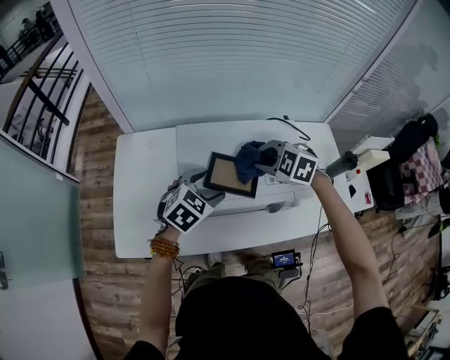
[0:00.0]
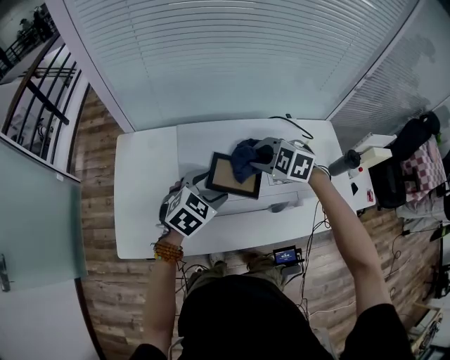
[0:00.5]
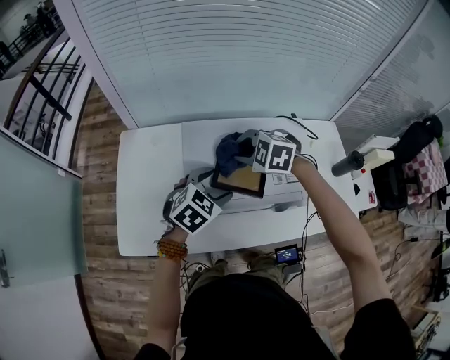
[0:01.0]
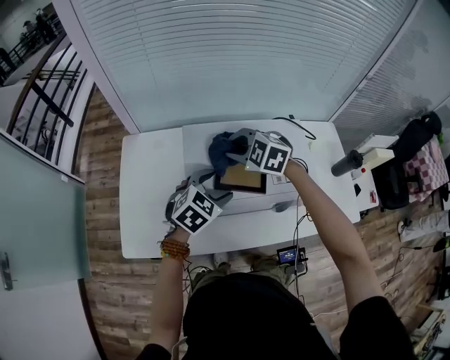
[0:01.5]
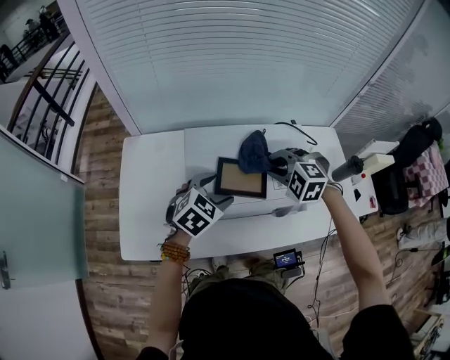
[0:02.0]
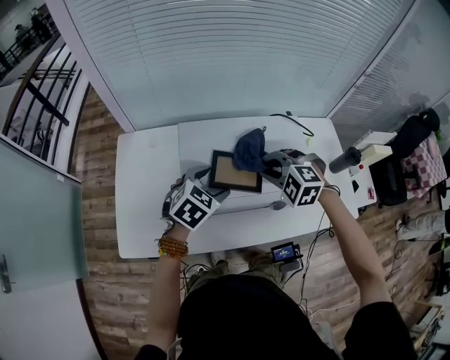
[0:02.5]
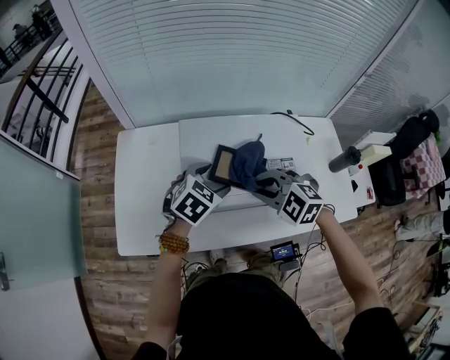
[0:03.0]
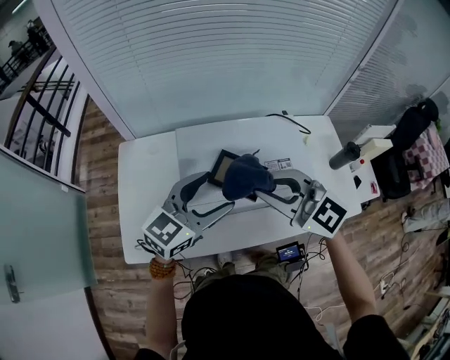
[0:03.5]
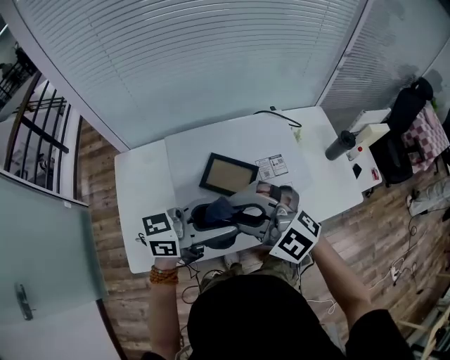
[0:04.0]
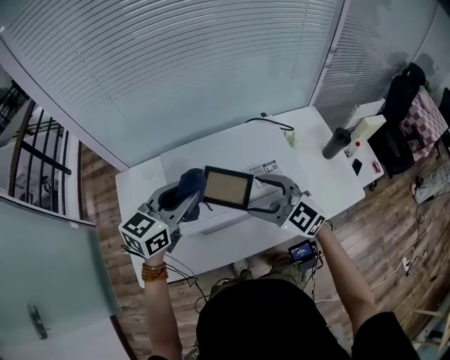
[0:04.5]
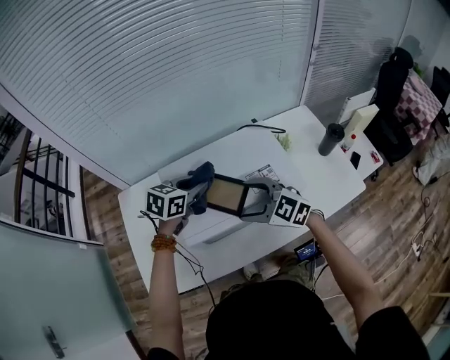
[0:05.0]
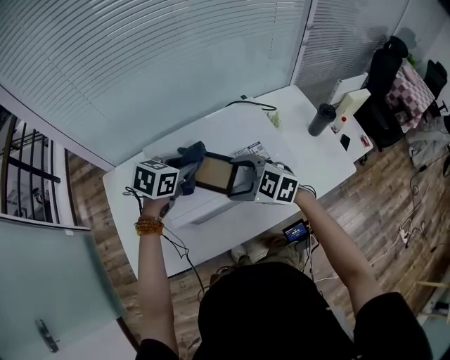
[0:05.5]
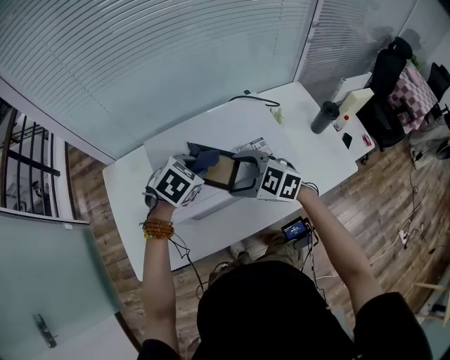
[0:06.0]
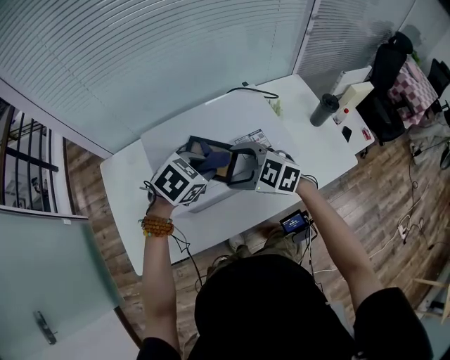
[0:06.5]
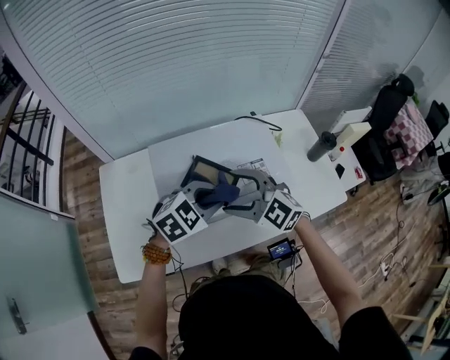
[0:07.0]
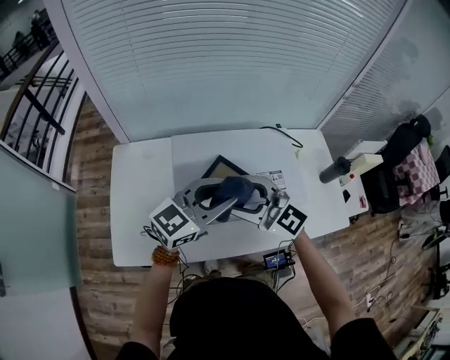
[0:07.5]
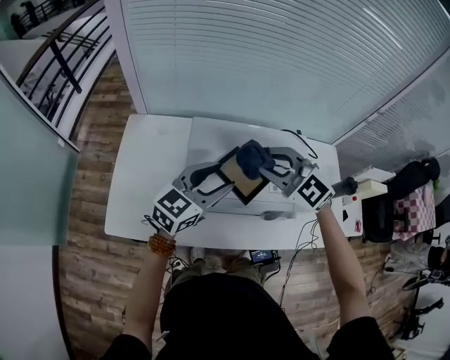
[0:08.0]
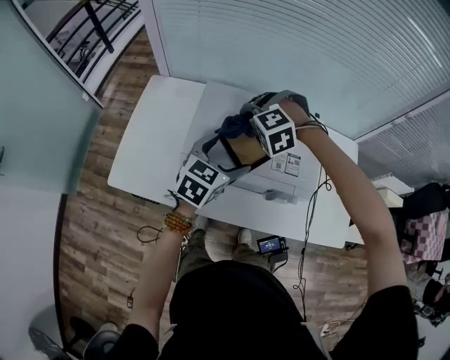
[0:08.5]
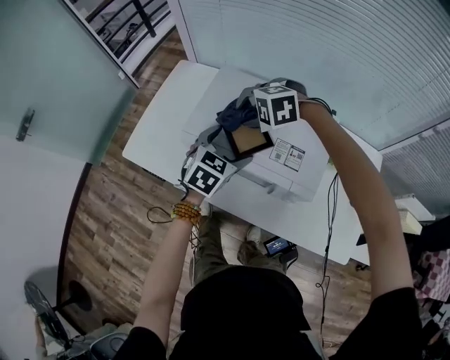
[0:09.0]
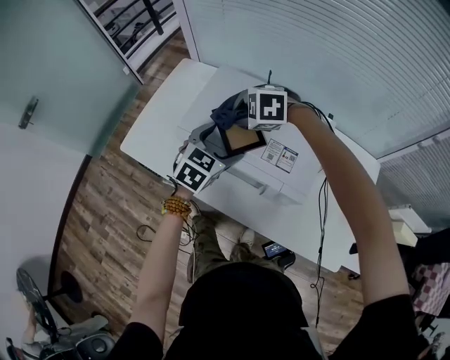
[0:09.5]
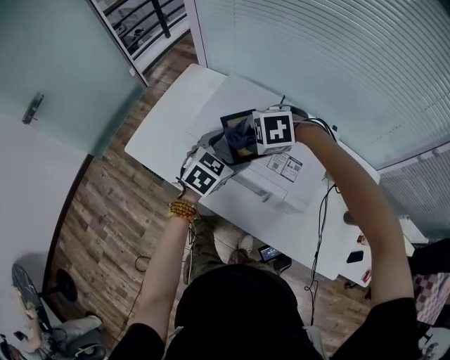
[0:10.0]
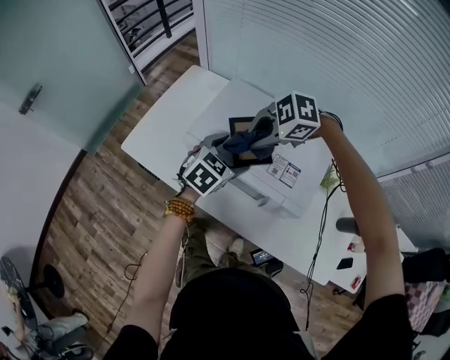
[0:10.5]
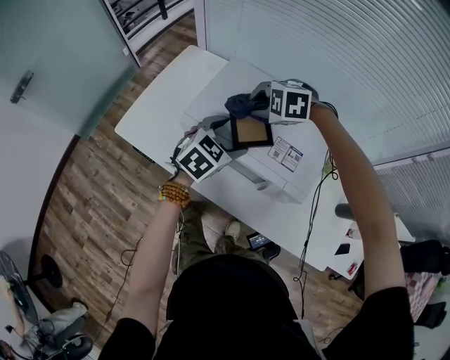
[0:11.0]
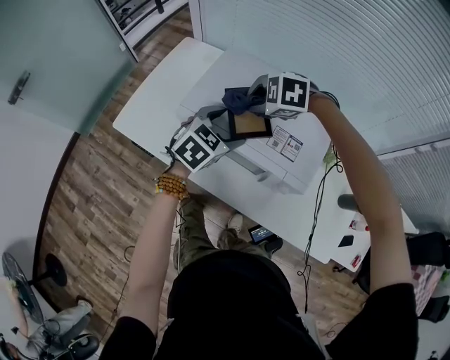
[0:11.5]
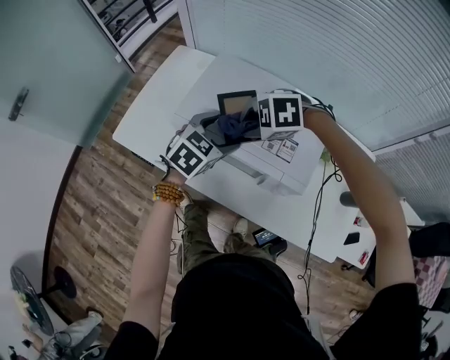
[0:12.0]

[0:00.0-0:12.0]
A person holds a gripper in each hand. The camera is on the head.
0:00.0 to 0:02.0: The right gripper goes to the left and returns, approximately 10 cm each way.
0:02.0 to 0:04.0: The left gripper heads upward, covering roughly 15 cm, and points its fingers about 50 degrees further upward, while the right gripper shifts by about 25 cm, and tilts its fingers about 40 degrees upward.
0:04.0 to 0:06.0: The right gripper shifts some 15 cm downward, swivels about 40 degrees, and opens its fingers, while the left gripper shifts by about 20 cm, tips its fingers downward by approximately 60 degrees, and closes.
0:06.0 to 0:08.0: Both grippers move upward, about 10 cm. The right gripper swivels about 30 degrees, and closes up. The left gripper angles its fingers upward, by approximately 50 degrees.
0:08.0 to 0:10.0: Both grippers travel together downward, roughly 10 cm. The left gripper swivels about 40 degrees, and opens its fingers. Meanwhile the right gripper points its fingers approximately 40 degrees further downward.

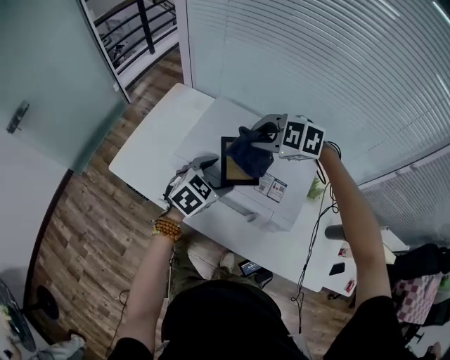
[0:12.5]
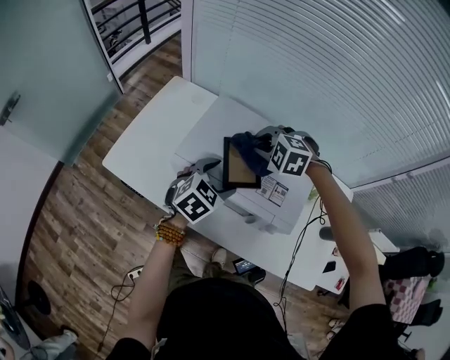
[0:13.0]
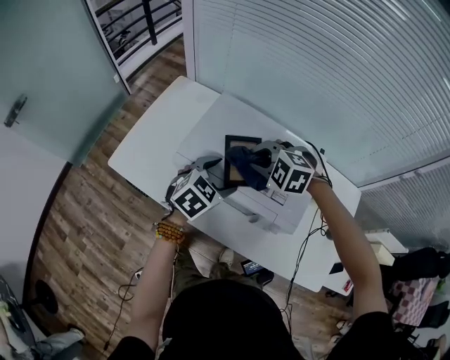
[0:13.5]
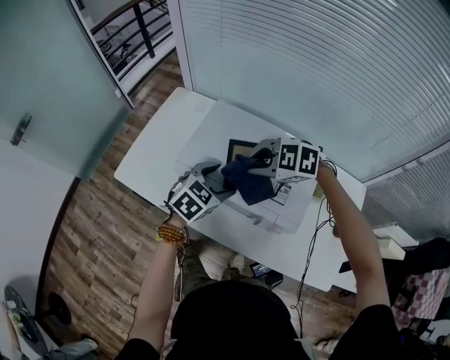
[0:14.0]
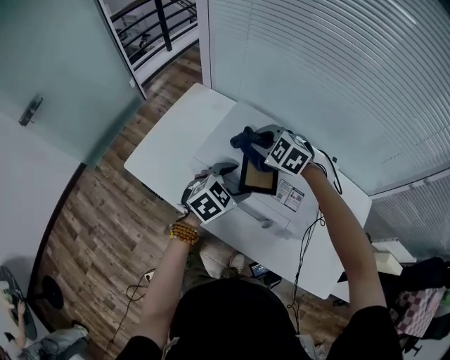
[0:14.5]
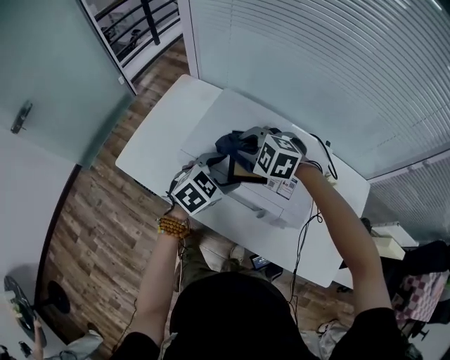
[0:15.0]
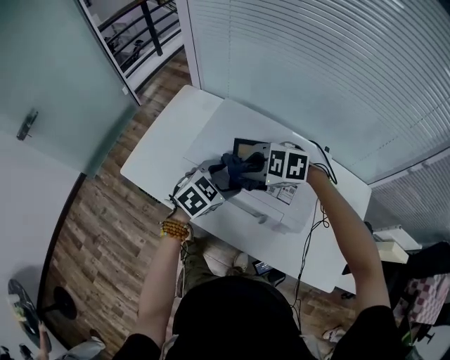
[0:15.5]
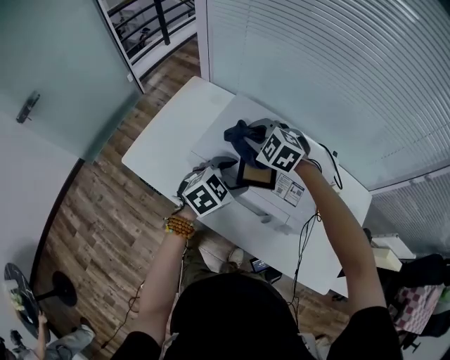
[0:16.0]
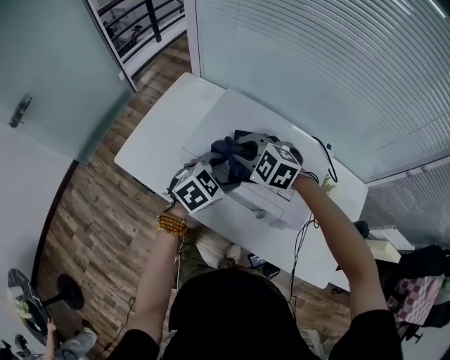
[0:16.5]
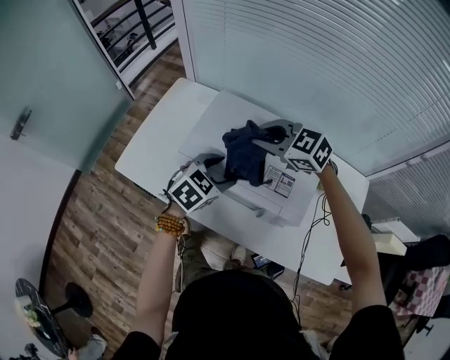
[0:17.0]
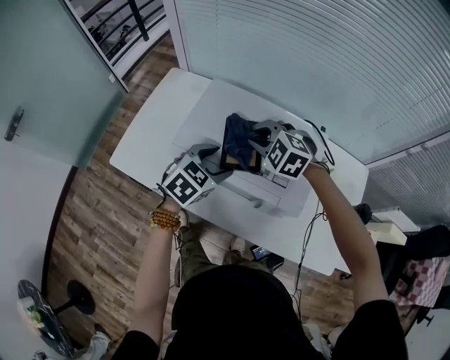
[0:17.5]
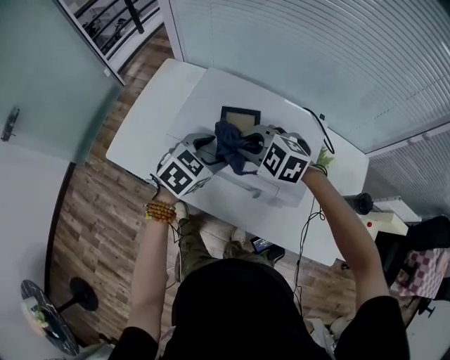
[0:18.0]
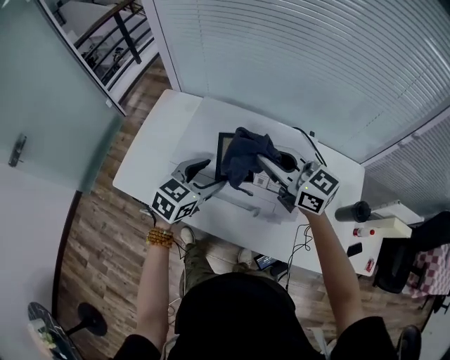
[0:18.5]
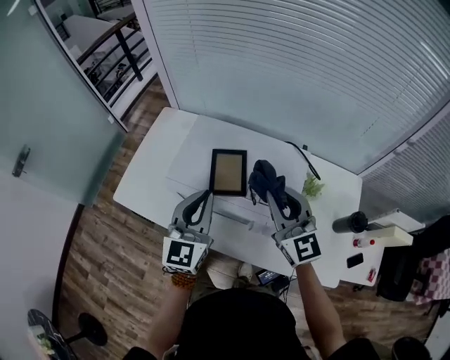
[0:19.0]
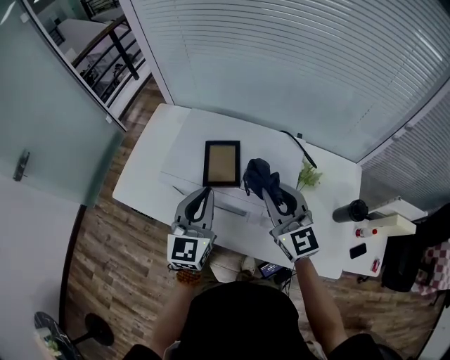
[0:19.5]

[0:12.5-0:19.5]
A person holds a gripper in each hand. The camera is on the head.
0:12.5 to 0:14.5: The right gripper ends up about 10 cm from where it was.
0:16.0 to 0:17.5: The right gripper shifts about 10 cm to the right and backward.
0:17.5 to 0:19.5: The right gripper heads backward, to the right and upward, covering roughly 20 cm, and tilts its fingers approximately 50 degrees upward. Meanwhile the left gripper is displaced upward and backward by roughly 10 cm, angles its fingers upward, by roughly 40 degrees, and closes up.

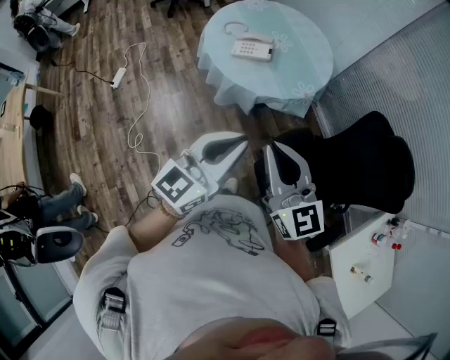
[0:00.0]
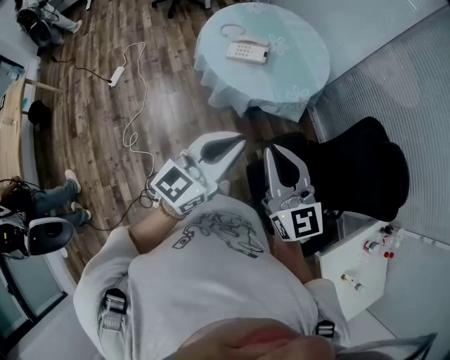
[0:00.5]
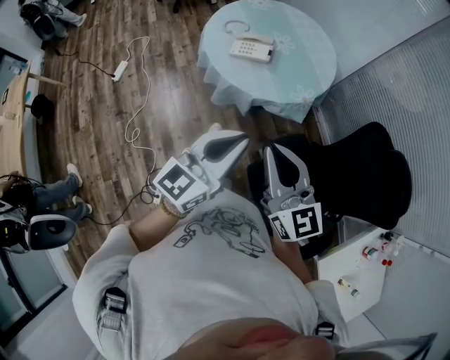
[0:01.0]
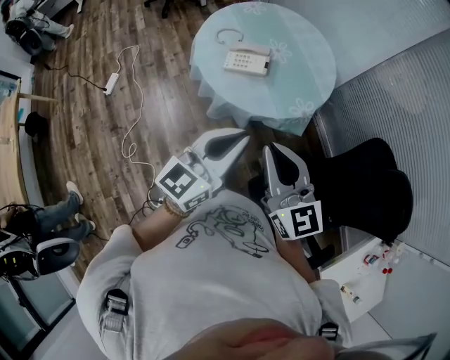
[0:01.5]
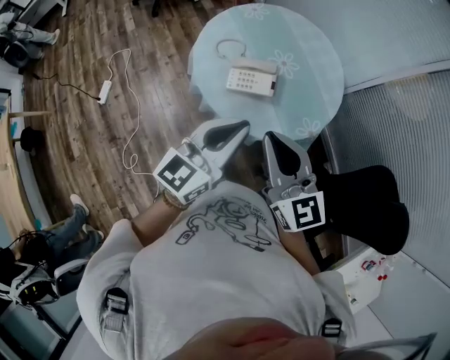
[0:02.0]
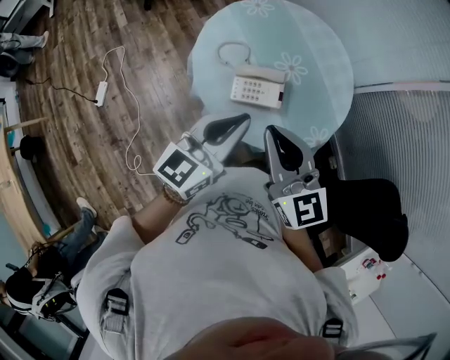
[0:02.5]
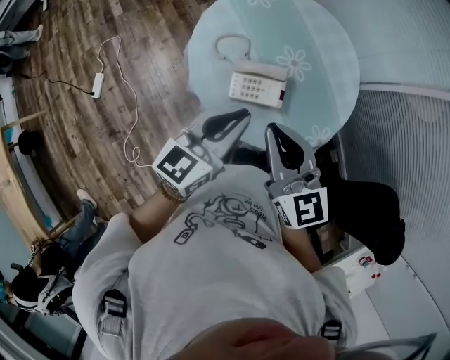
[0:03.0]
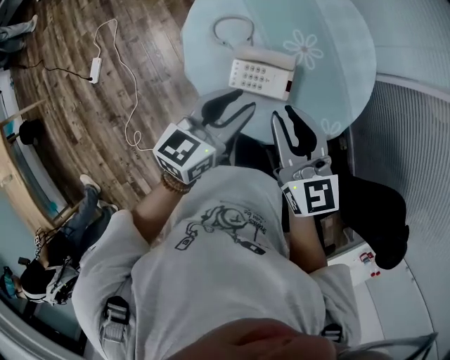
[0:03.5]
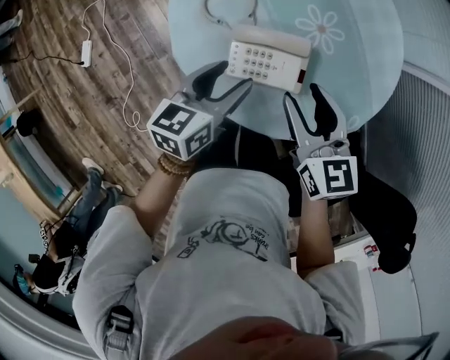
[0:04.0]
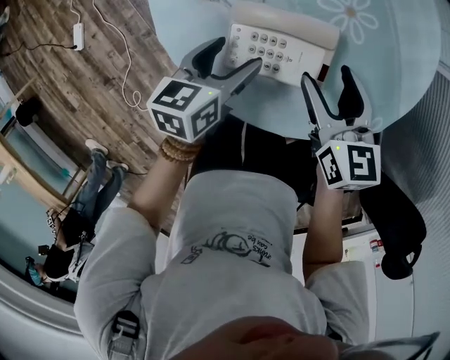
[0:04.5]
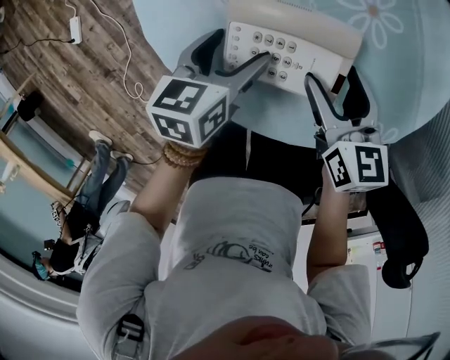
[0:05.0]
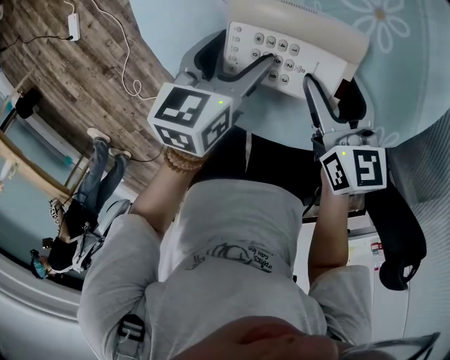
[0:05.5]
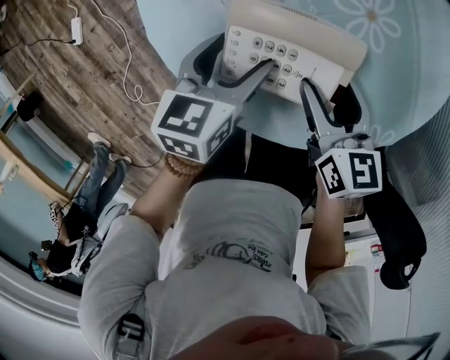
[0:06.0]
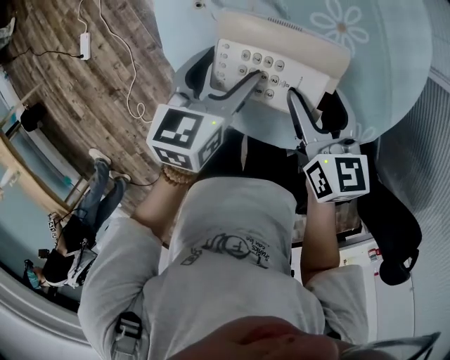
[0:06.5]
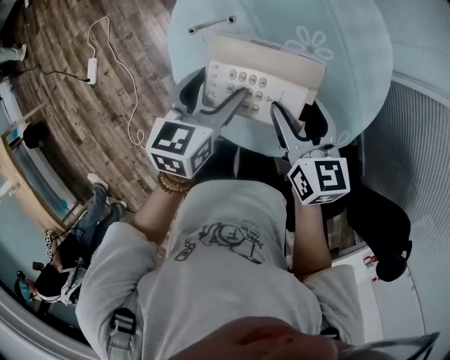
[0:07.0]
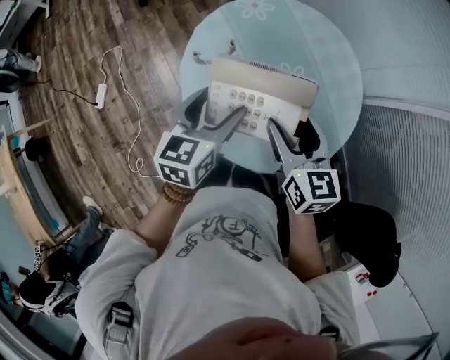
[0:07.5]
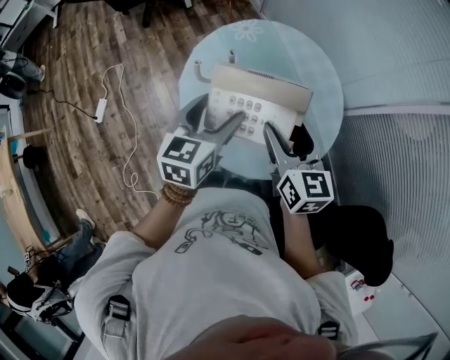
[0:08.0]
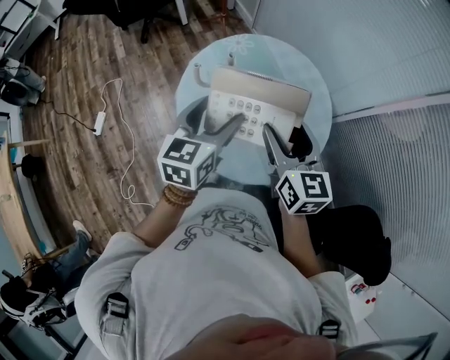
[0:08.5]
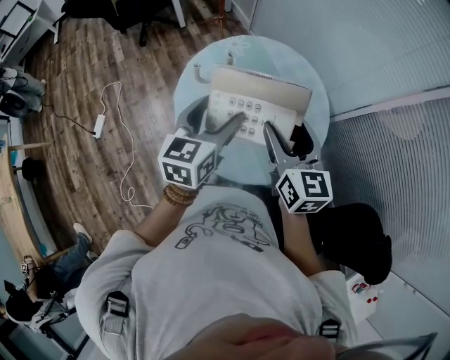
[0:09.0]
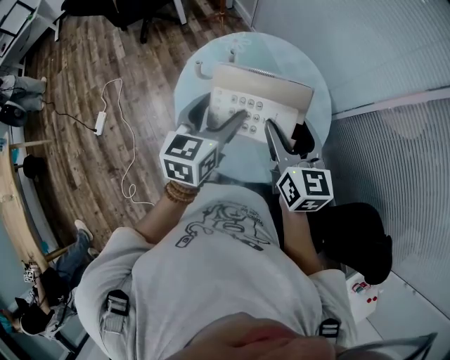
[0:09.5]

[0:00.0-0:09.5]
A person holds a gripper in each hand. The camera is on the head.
0:00.0 to 0:02.0: The grippers both shift forward by about 35 cm.
0:02.0 to 0:04.0: The left gripper shifts roughly 40 cm downward and forward, turns by about 40 degrees, and opens. Meanwhile the right gripper moves forward and downward, approximately 40 cm, rotates approximately 30 degrees, and opens up.
0:04.0 to 0:05.5: The two grippers go some 20 cm downward.
0:05.5 to 0:07.5: Both grippers travel together upward, about 35 cm. The left gripper turns by approximately 20 degrees.
0:07.5 to 0:09.5: Both grippers travel together upward, roughly 10 cm.
